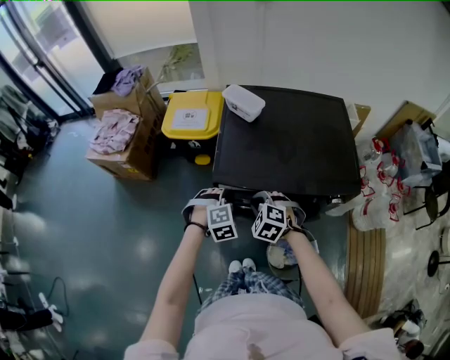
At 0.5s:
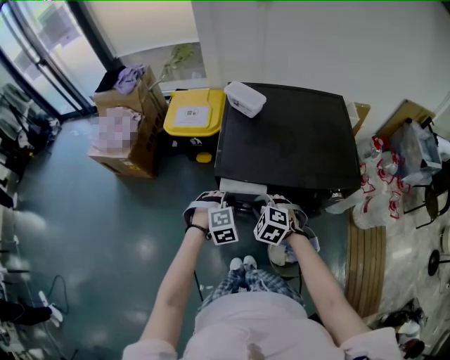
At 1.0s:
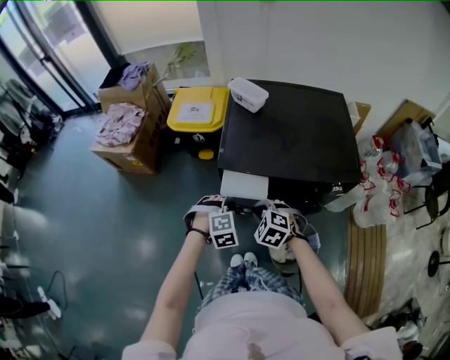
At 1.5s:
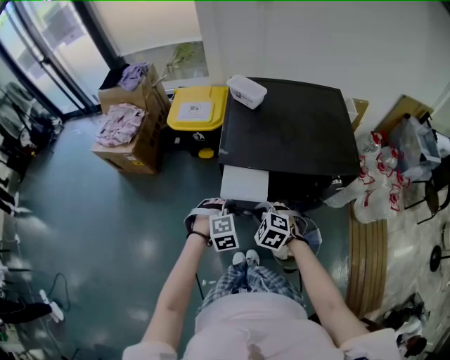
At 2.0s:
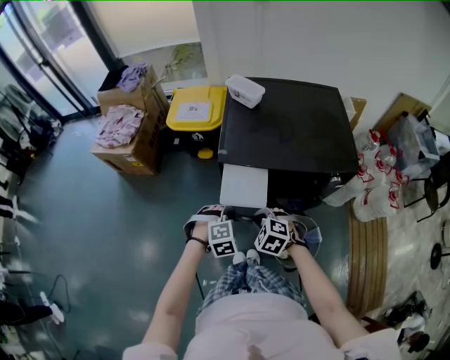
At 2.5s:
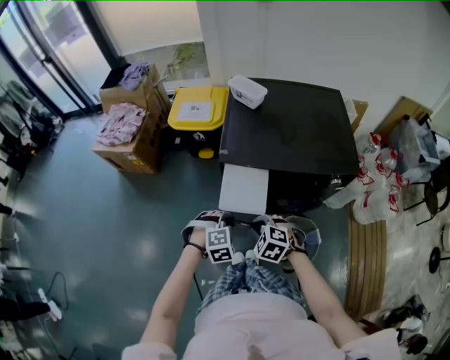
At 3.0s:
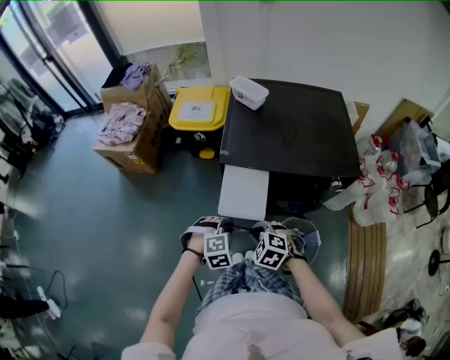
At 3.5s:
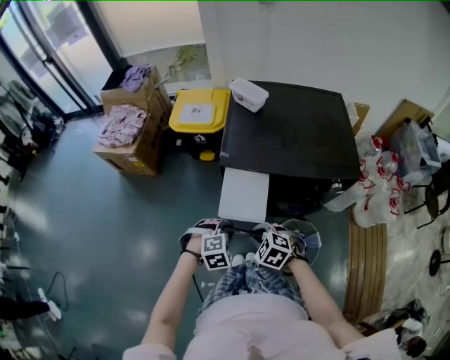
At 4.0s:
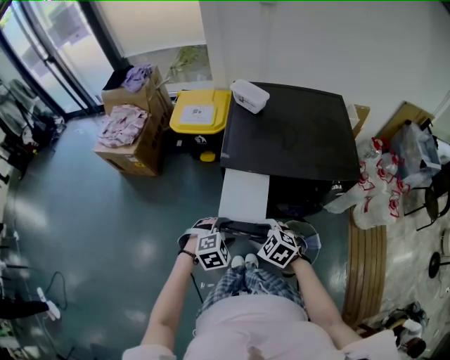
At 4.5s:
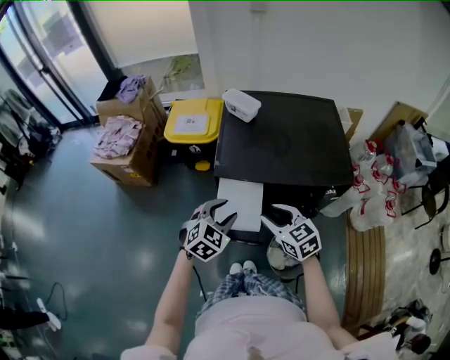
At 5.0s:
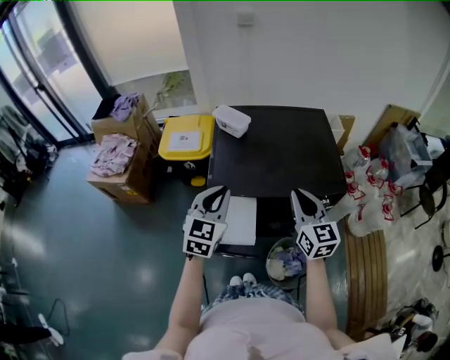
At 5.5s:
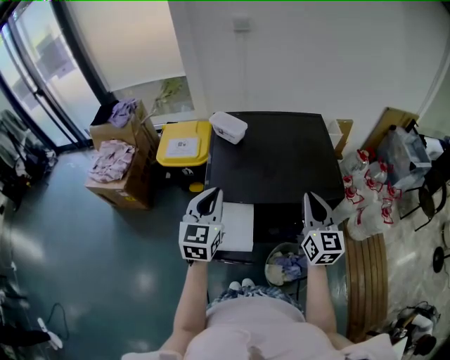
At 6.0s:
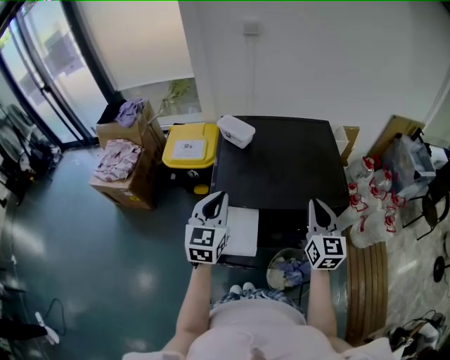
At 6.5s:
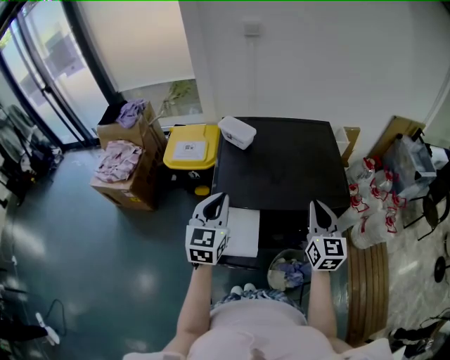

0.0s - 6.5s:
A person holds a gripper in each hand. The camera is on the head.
0.0s - 2.0s: Both grippers move backward, about 15 cm.
2.0s - 4.5s: The right gripper heads upward and to the right, covering some 15 cm, tips its fingers upward by roughly 30 degrees, and opens its fingers, while the left gripper shifts some 10 cm upward and forward, changes its angle by roughly 40 degrees, and opens.
4.5s - 6.5s: The right gripper goes about 20 cm to the right, upward and forward, rotates roughly 40 degrees, and closes up. The left gripper heads upward and forward, covering some 15 cm, changes its angle by about 40 degrees, and closes.

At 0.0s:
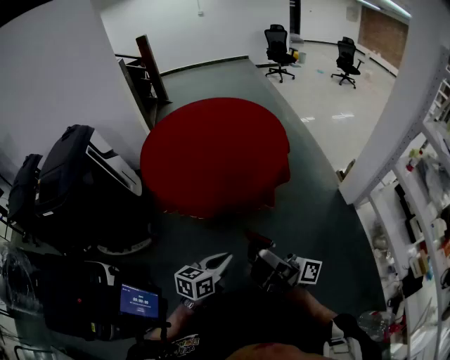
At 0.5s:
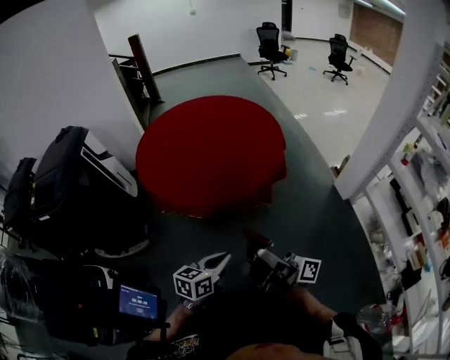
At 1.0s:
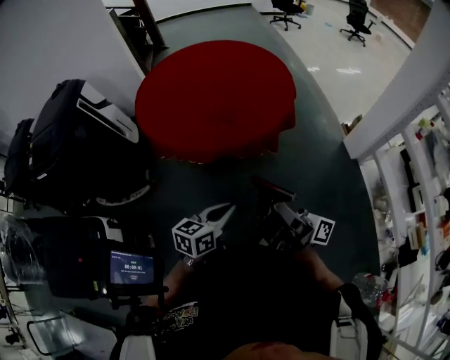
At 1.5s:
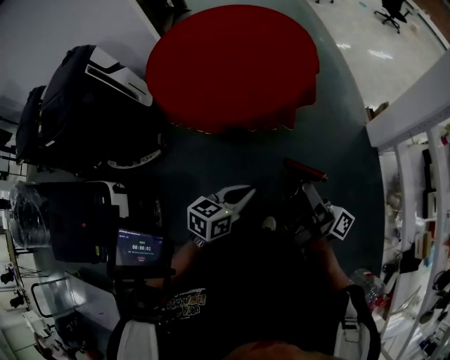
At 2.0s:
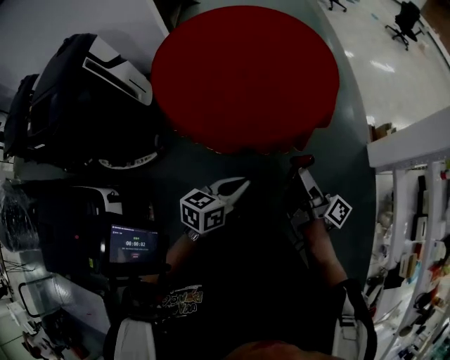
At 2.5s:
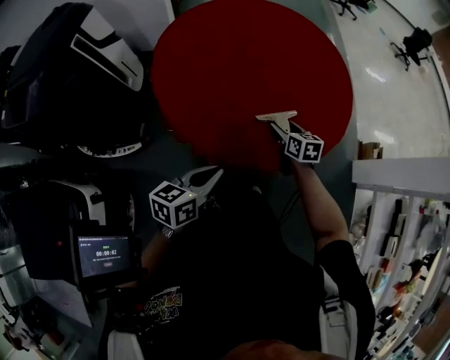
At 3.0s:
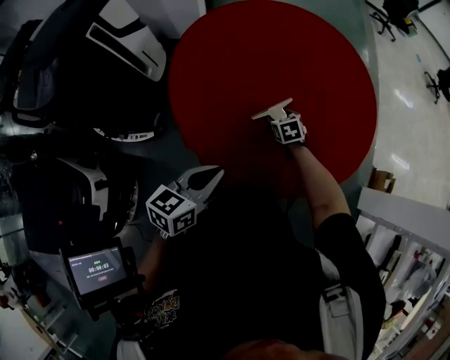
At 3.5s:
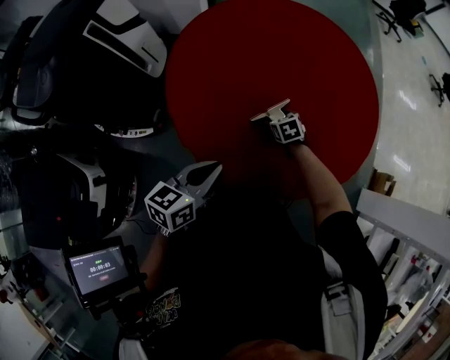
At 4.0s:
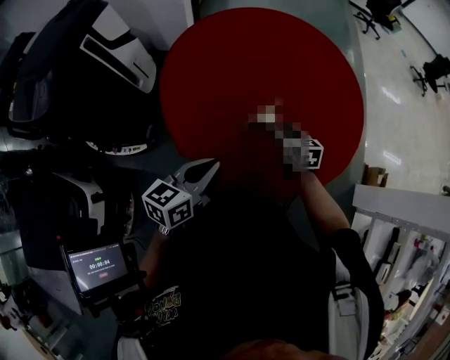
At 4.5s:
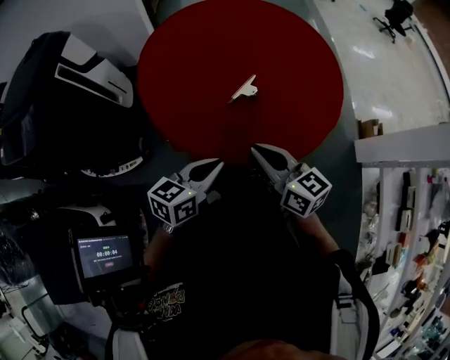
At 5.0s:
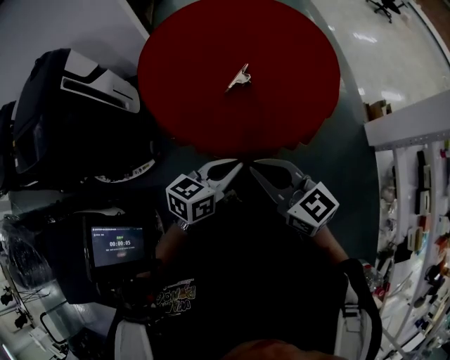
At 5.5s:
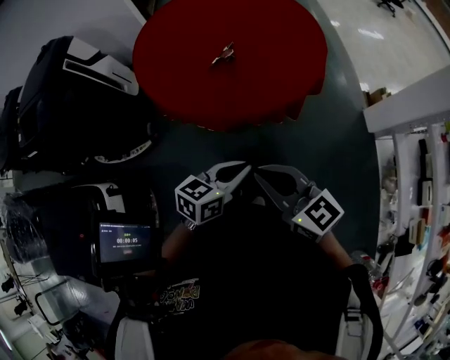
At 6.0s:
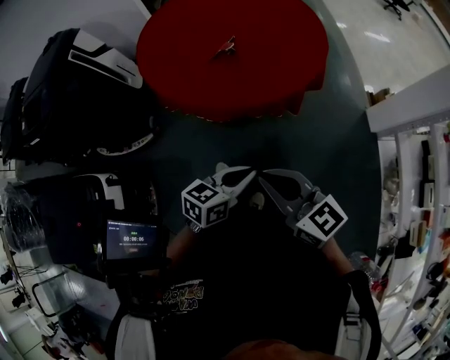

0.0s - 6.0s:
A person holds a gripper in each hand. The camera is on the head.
0.0s - 2.0s: The left gripper moves forward, about 15 cm. The right gripper travels forward and downward by roughly 25 cm, and swivels roughly 30 degrees.
2.0s - 4.0s: The left gripper moves forward and to the left, roughly 25 cm. The right gripper moves forward, approximately 35 cm, tilts its fingers approximately 40 degrees downward, and closes up.
4.0s - 6.0s: The right gripper travels backward and upward by some 50 cm, turns by about 30 degrees, and closes its fingers. The left gripper heads backward and to the right, covering some 35 cm, and rotates roughly 20 degrees.

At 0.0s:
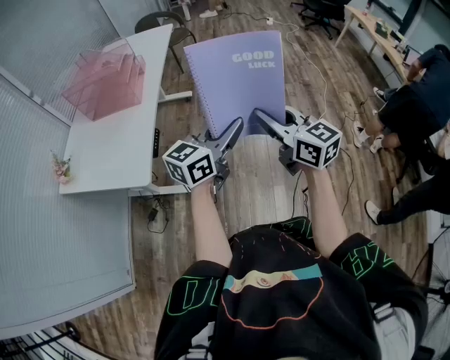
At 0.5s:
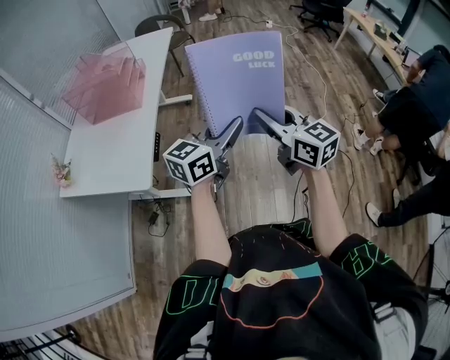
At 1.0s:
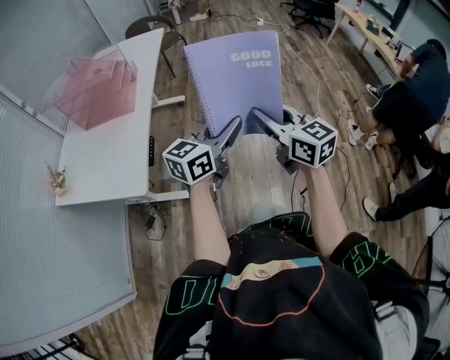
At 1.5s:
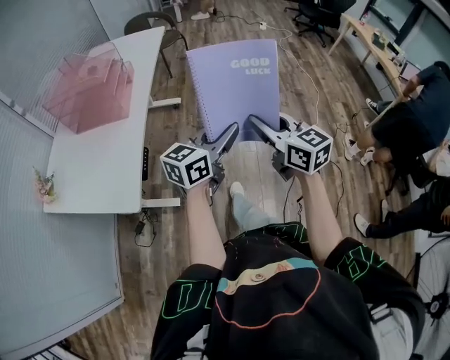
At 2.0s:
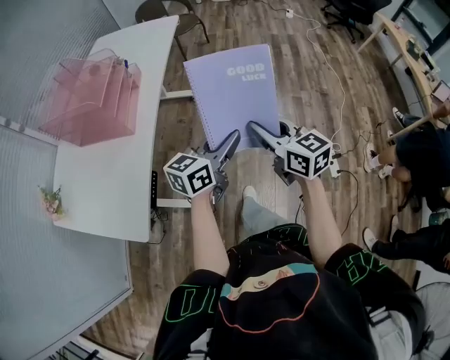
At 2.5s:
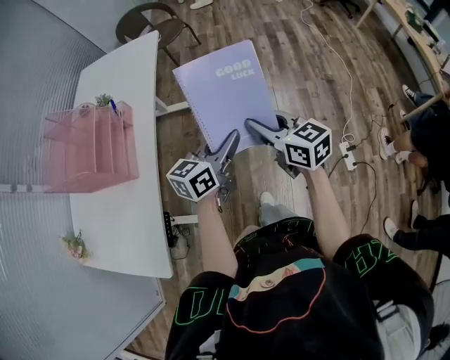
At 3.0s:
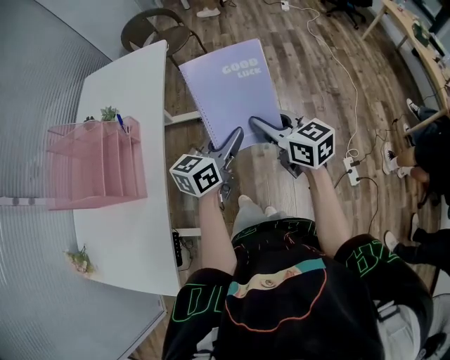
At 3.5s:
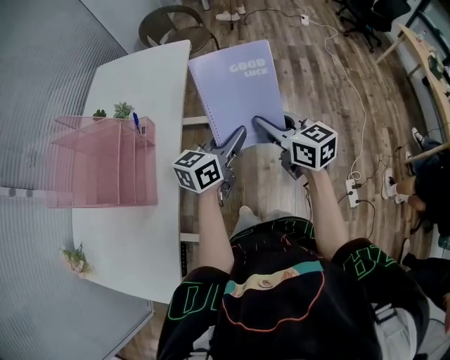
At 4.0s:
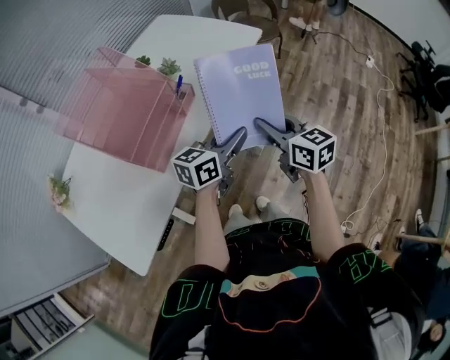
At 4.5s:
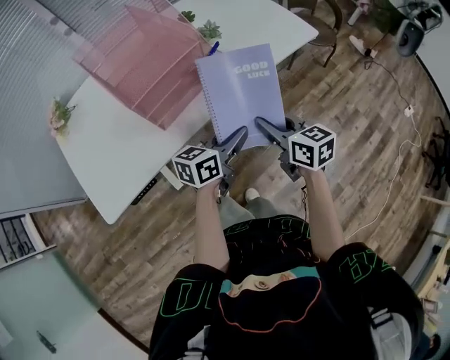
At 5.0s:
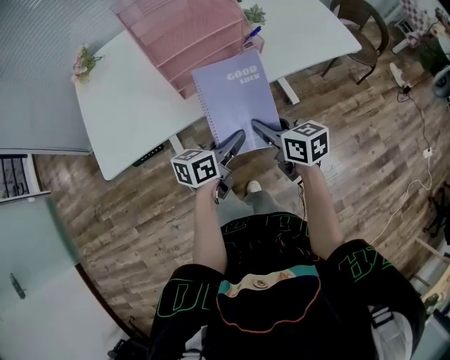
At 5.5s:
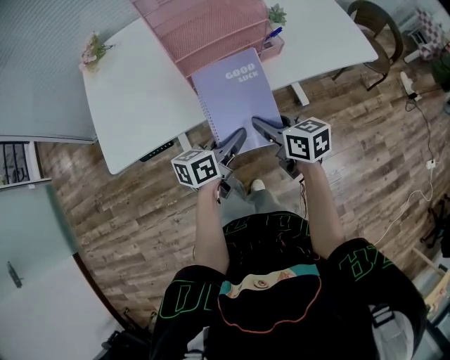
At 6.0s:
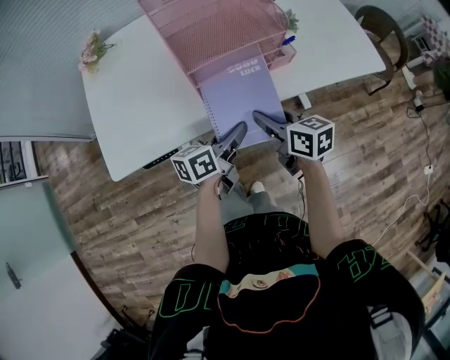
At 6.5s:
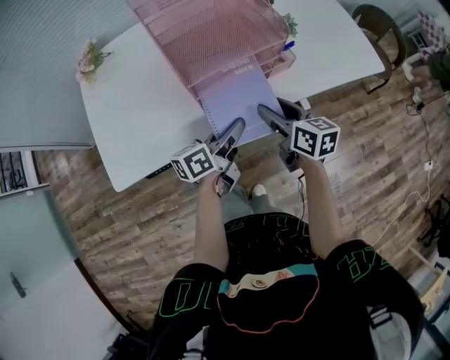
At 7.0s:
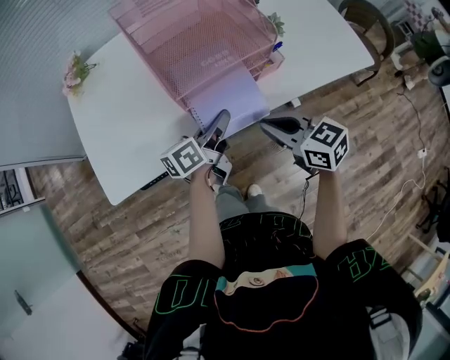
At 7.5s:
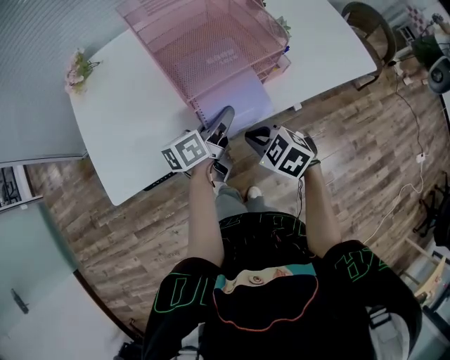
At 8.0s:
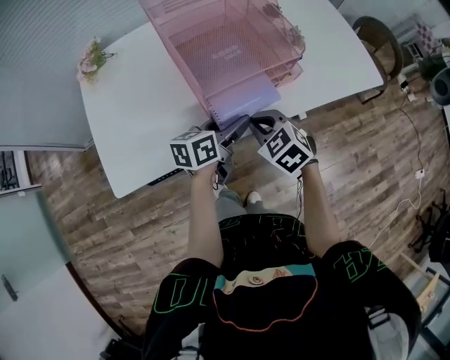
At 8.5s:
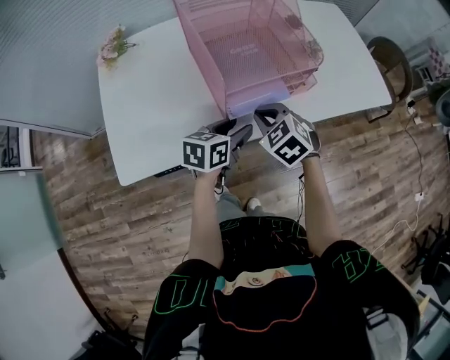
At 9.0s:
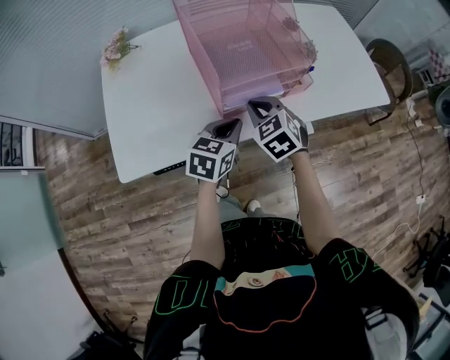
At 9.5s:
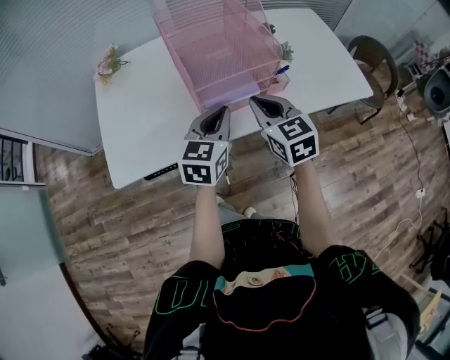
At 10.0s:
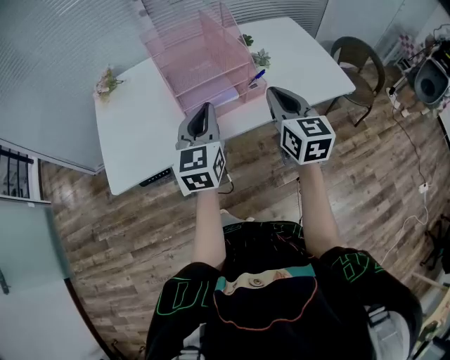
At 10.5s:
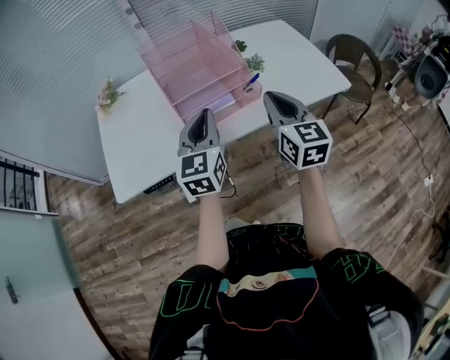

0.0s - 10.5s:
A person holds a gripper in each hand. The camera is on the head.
0.0s - 2.0s: The two grippers go roughly 25 cm forward.
2.0s - 4.0s: The right gripper heads forward and to the left, covering about 35 cm, and rotates about 20 degrees. The left gripper shifts approximately 30 cm forward, and changes its angle by some 20 degrees.
4.0s - 6.5s: The right gripper changes place by roughly 25 cm, turns by approximately 30 degrees, and opens up, while the left gripper ends up approximately 20 cm from where it was, and rotates roughly 50 degrees.
6.5s - 8.5s: The right gripper shifts roughly 10 cm to the left, rotates around the line of its fingers by approximately 60 degrees, counterclockwise from behind, and closes its fingers. The left gripper changes its angle by roughly 30 degrees, and opens its fingers.
8.5s - 10.5s: The left gripper is displaced upward by some 20 cm, changes its angle by about 50 degrees, and closes its fingers, while the right gripper travels upward and to the right by approximately 25 cm, and angles its fingers upward, by some 40 degrees.

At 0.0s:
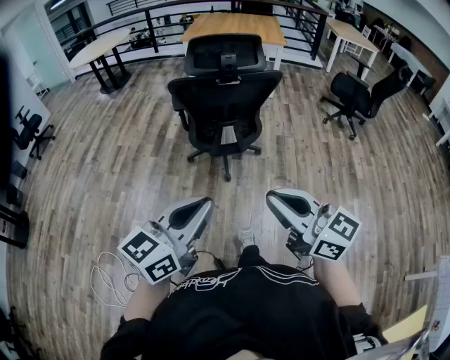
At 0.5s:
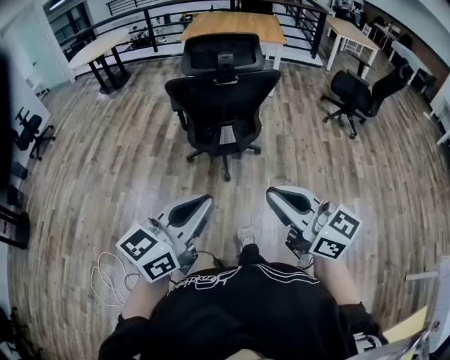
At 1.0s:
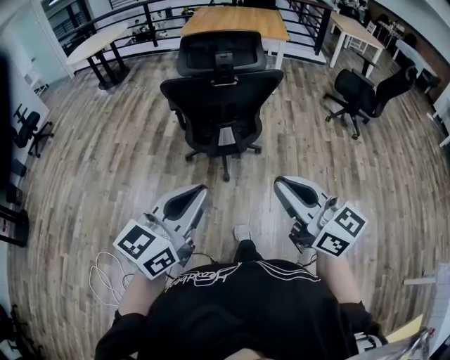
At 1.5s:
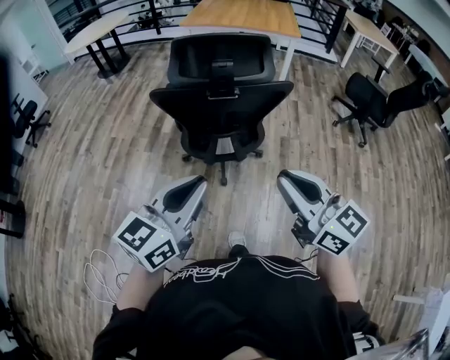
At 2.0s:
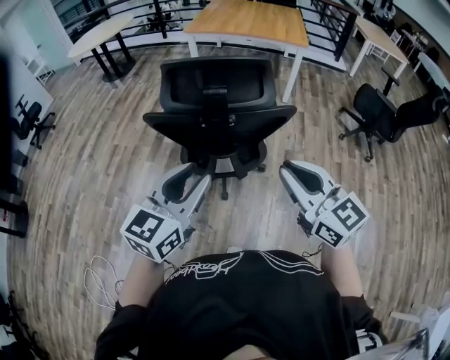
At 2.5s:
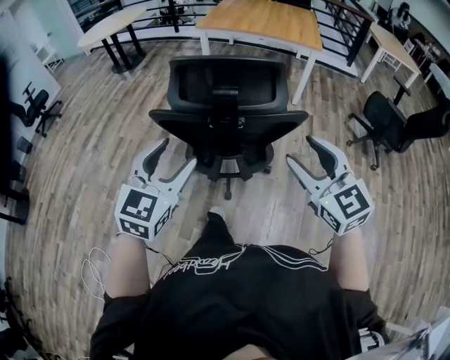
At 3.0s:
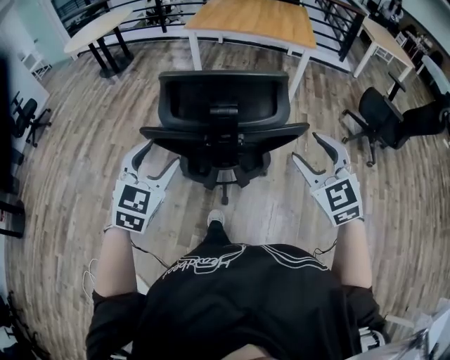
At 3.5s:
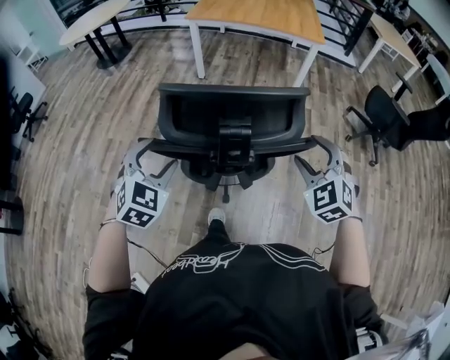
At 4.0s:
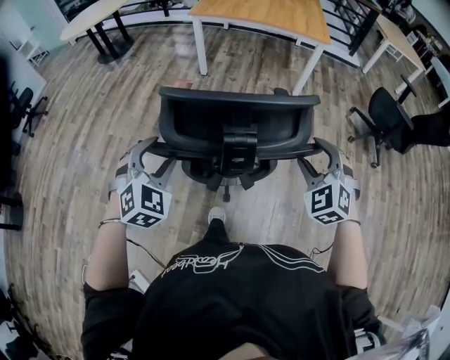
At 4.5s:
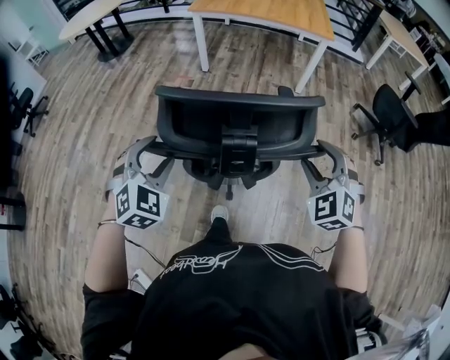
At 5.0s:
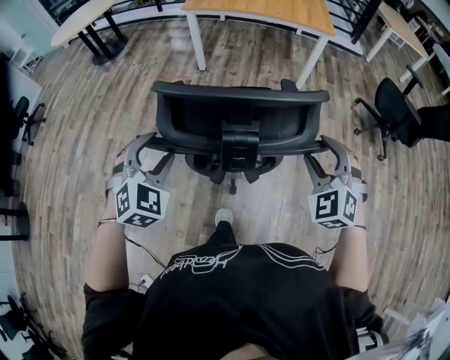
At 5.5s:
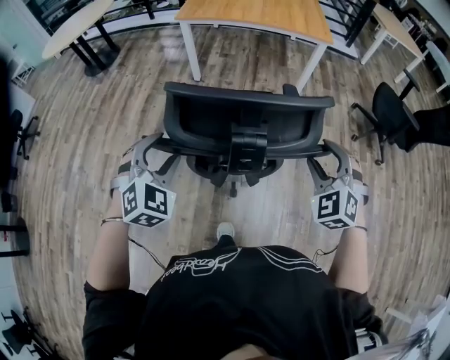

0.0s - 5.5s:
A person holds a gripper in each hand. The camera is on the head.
0.0s - 2.0s: Both grippers travel together forward, approximately 40 cm. The left gripper opens up.
2.0s - 3.5s: The right gripper goes about 25 cm forward and downward, rotates approximately 60 degrees, and opens up; the left gripper moves forward, to the left and downward, some 30 cm, rotates approximately 50 degrees, and opens.
3.5s - 5.5s: The grippers both shift forward by approximately 20 cm.
